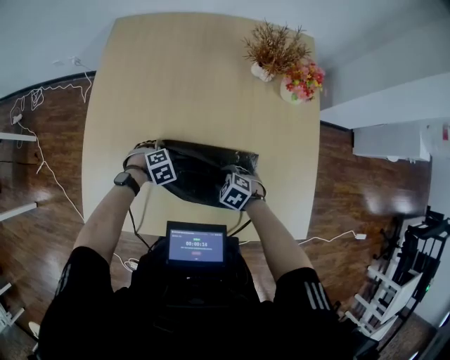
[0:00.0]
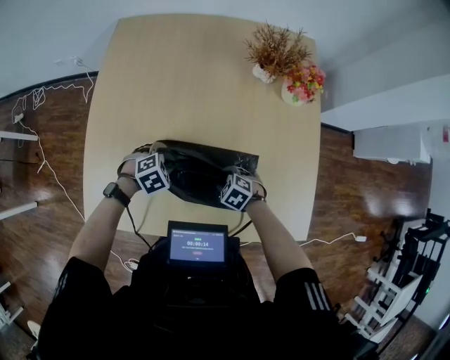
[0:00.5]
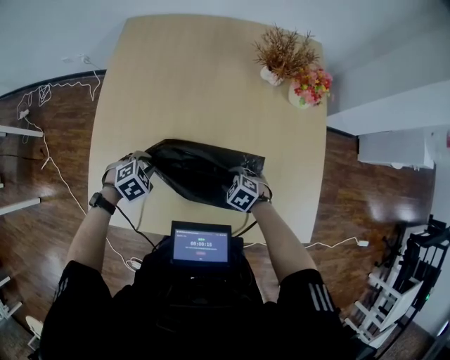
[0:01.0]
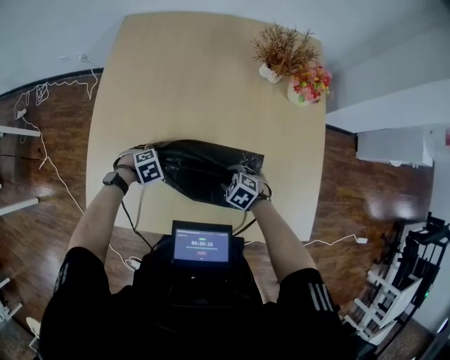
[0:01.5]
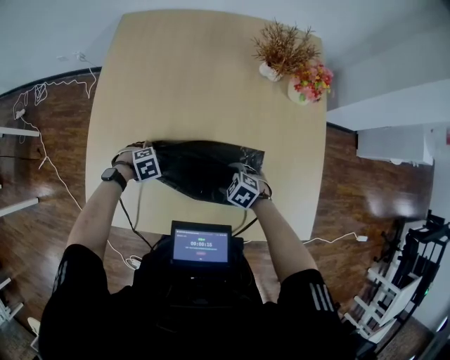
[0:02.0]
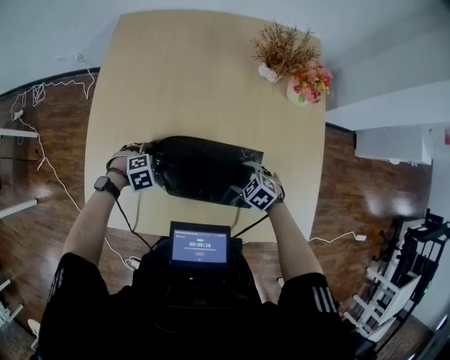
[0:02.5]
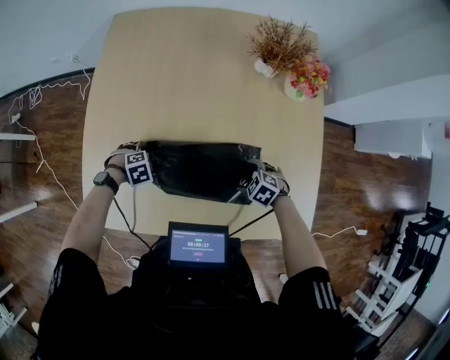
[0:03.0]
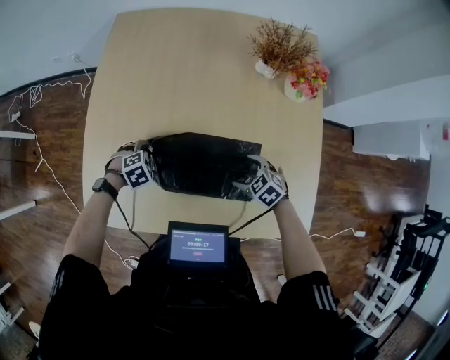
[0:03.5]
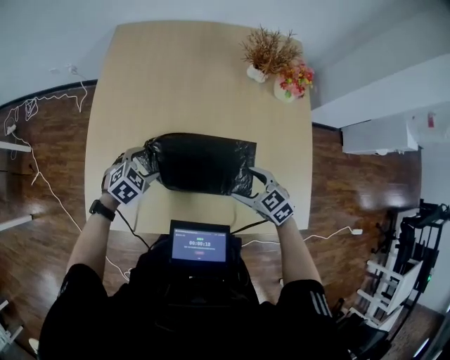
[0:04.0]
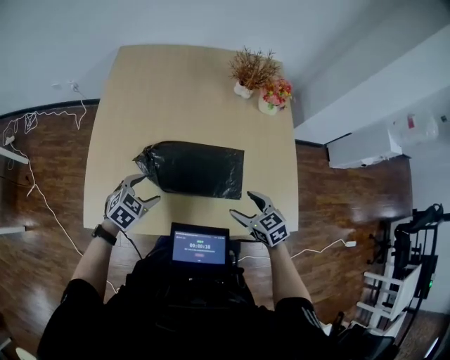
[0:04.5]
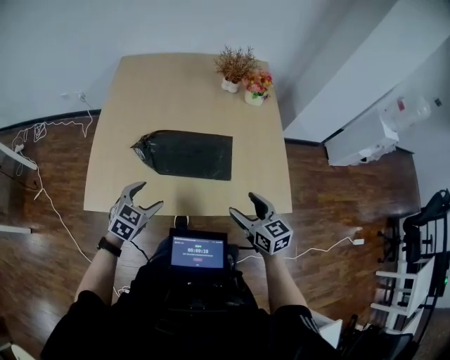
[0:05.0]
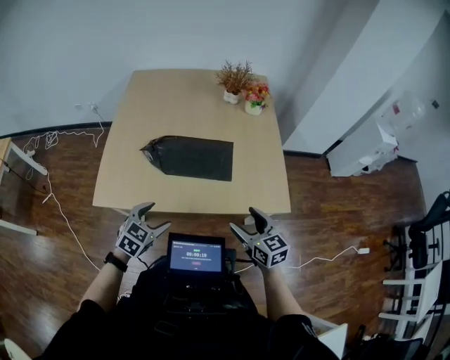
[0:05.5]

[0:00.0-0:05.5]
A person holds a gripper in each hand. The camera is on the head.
0:00.0 to 0:02.0: The left gripper goes upward and returns, roughly 10 cm each way, and closes, then reopens.
0:02.0 to 0:03.5: The right gripper changes place by approximately 10 cm.
0:03.5 to 0:05.5: The right gripper moves about 40 cm, and tilts its fingers about 40 degrees upward. The left gripper shifts by some 40 cm, and tilts its fingers approximately 40 degrees upward.

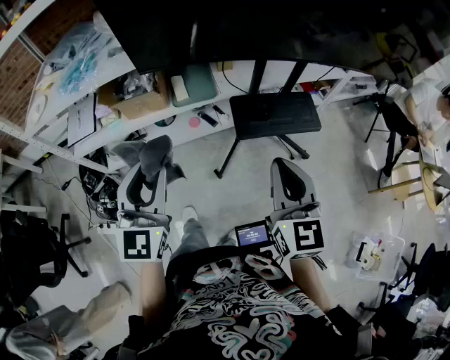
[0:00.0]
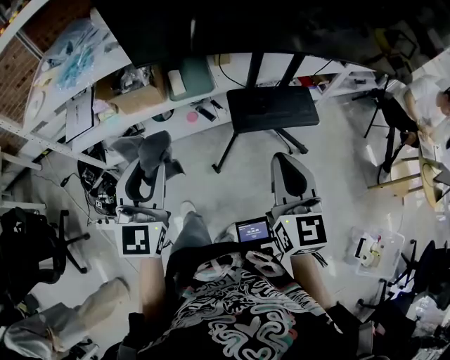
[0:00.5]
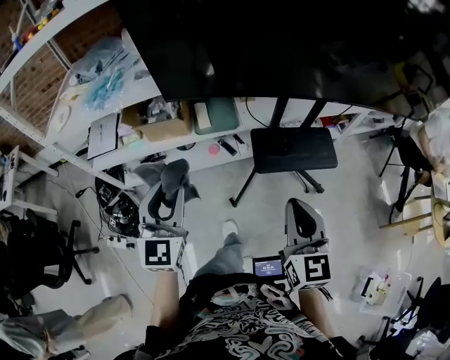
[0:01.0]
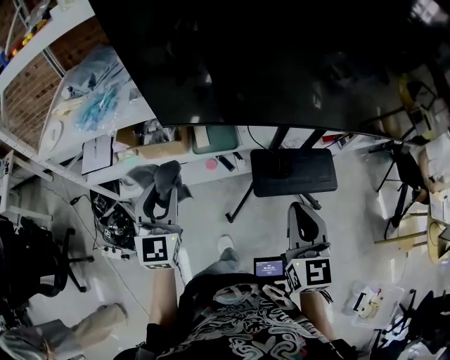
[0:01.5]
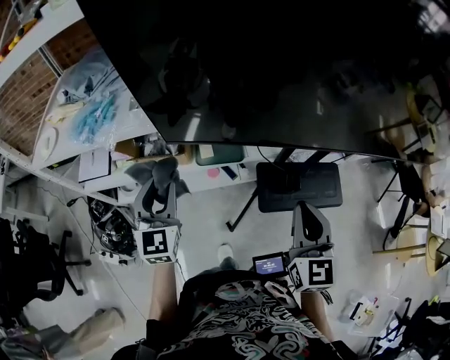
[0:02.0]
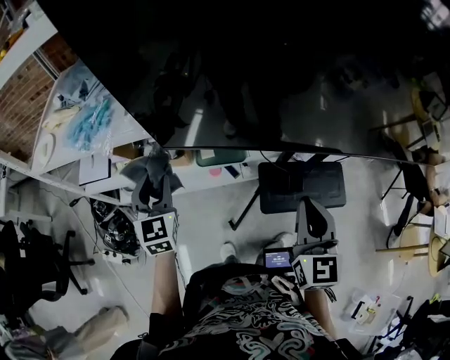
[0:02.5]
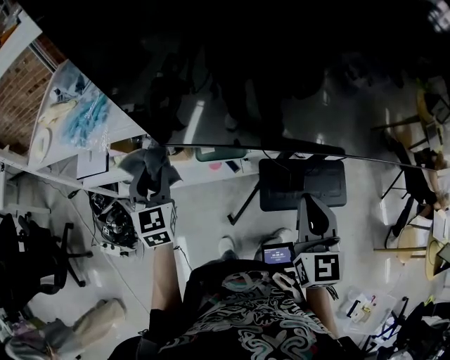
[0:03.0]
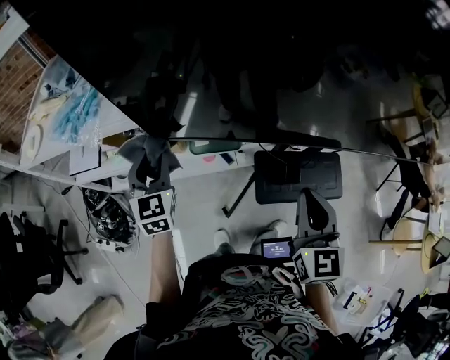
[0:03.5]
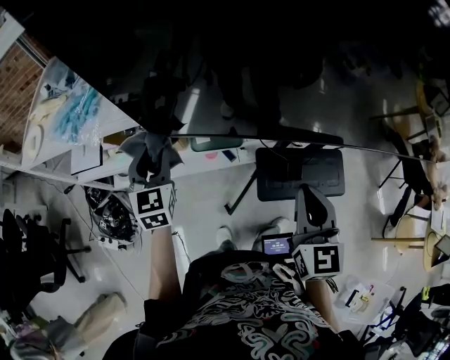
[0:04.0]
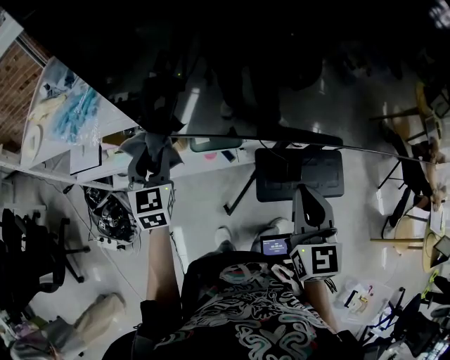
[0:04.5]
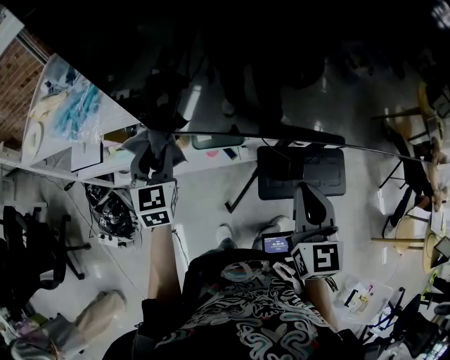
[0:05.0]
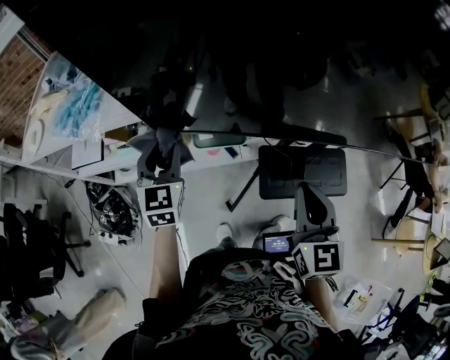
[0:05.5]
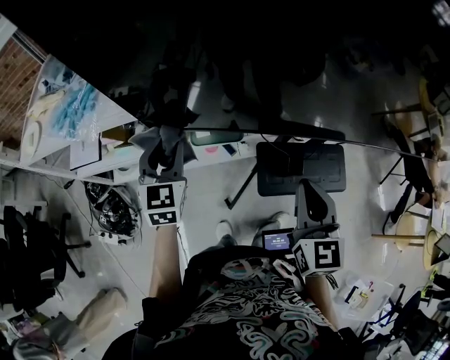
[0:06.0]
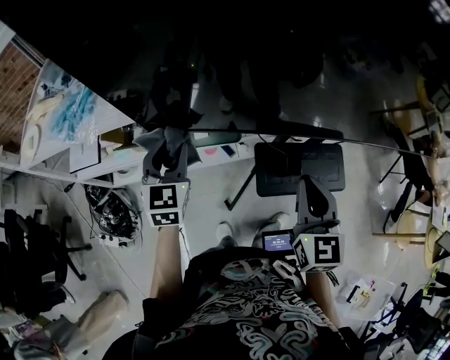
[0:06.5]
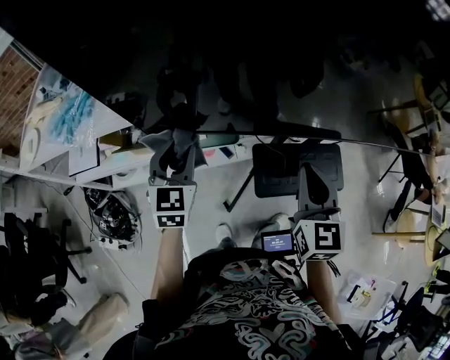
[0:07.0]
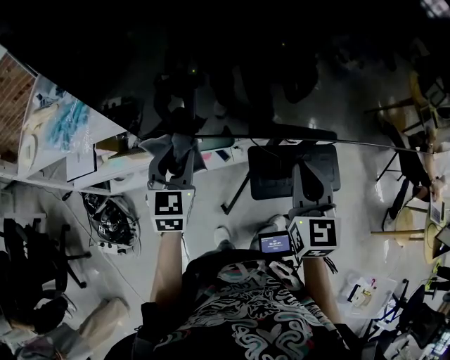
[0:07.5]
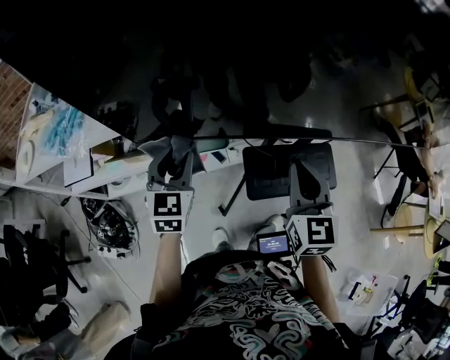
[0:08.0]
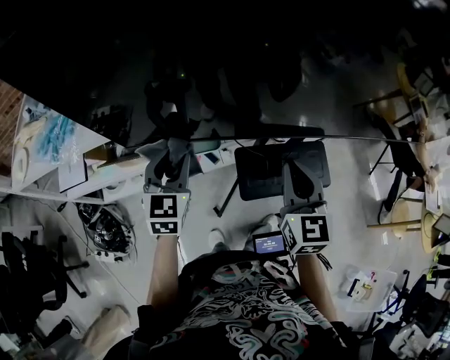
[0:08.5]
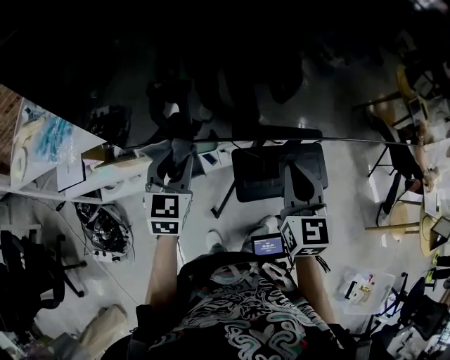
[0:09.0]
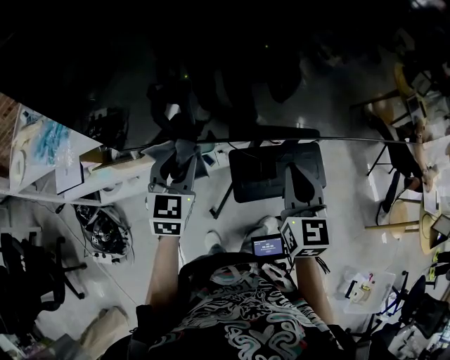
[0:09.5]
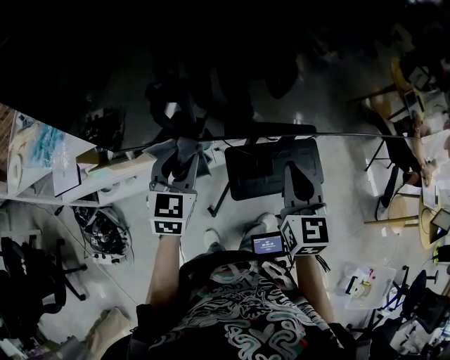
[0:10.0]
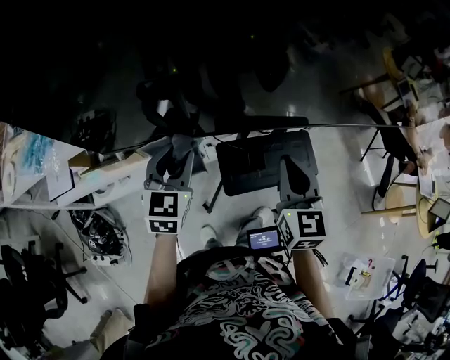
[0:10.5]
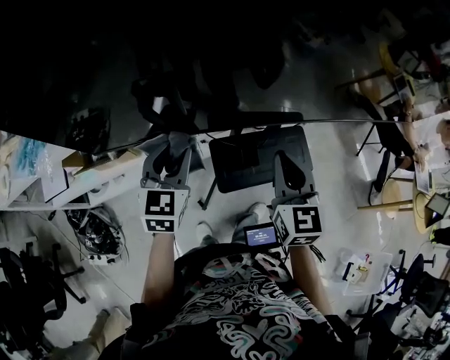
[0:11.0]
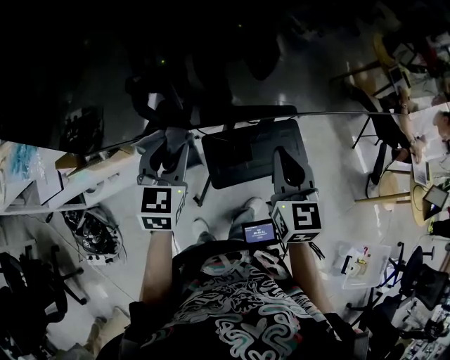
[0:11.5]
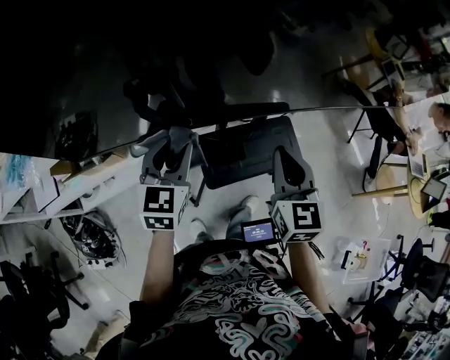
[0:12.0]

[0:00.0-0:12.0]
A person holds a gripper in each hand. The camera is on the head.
0:00.0 to 0:02.0: The two grippers go about 20 cm forward.
0:02.0 to 0:04.0: The left gripper shifts about 10 cm forward. The right gripper travels forward by about 5 cm.
0:04.0 to 0:06.0: The grippers stay close to where they were, moving slightly.
0:06.0 to 0:08.0: The right gripper changes place by some 5 cm. Meanwhile the left gripper shifts about 10 cm to the right.
0:08.0 to 0:10.0: The grippers both shift to the right by approximately 5 cm.
0:10.0 to 0:12.0: Both grippers travel together to the right, about 10 cm.

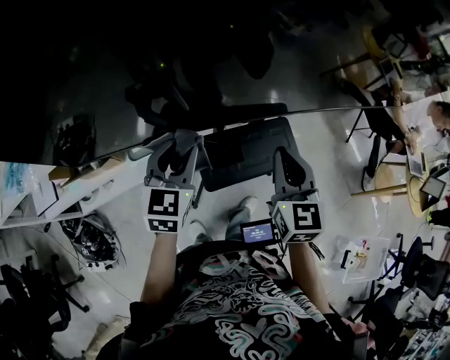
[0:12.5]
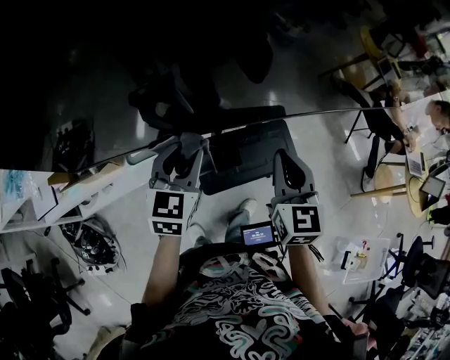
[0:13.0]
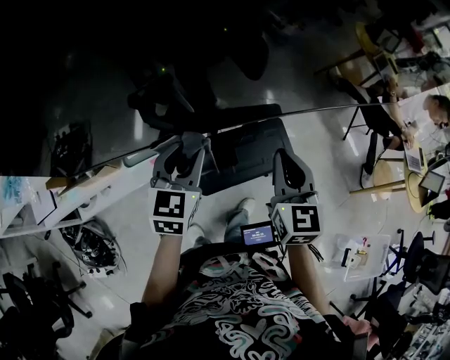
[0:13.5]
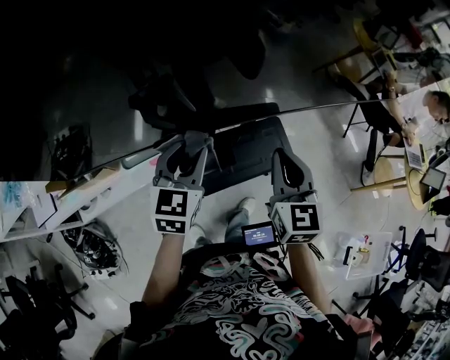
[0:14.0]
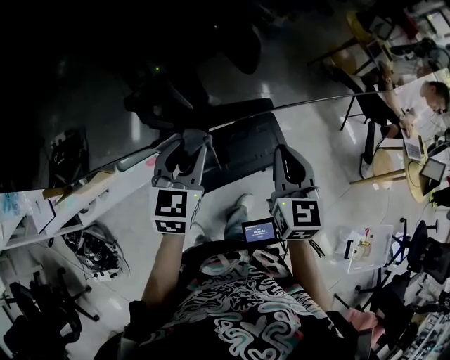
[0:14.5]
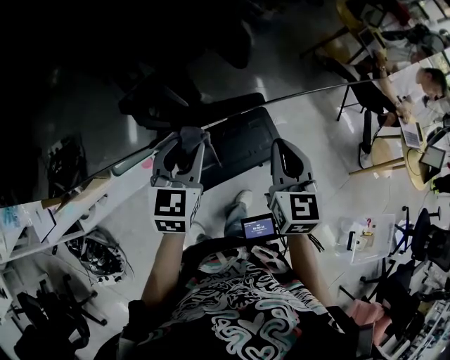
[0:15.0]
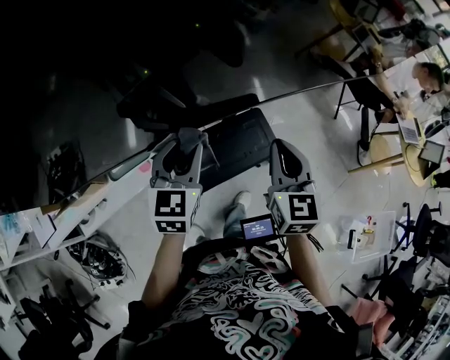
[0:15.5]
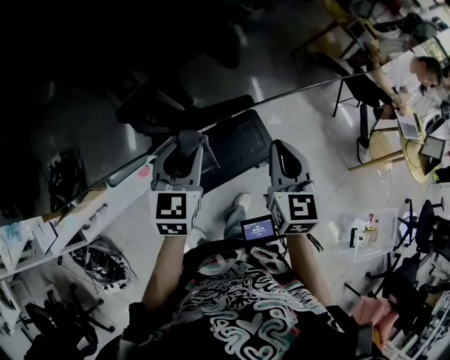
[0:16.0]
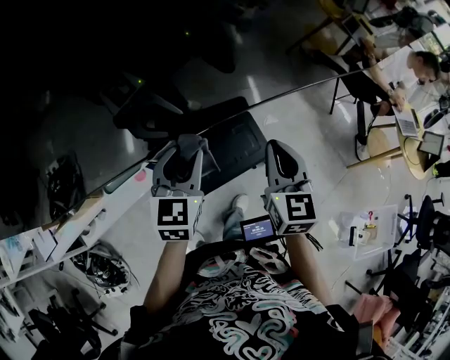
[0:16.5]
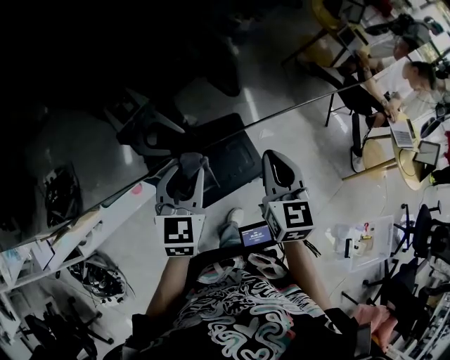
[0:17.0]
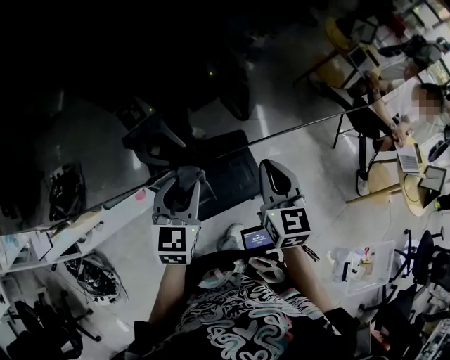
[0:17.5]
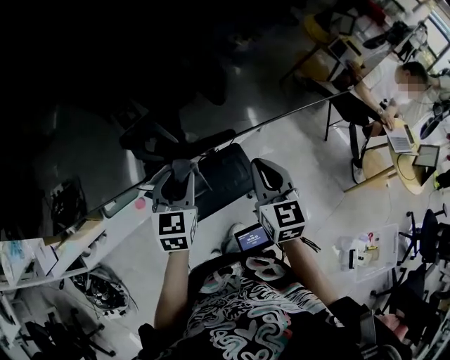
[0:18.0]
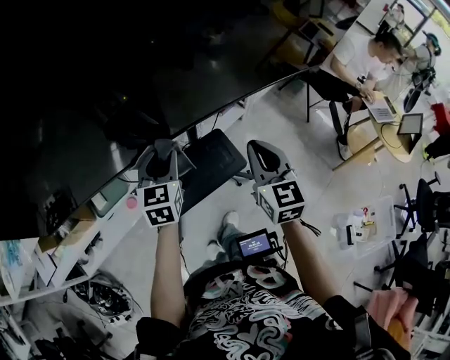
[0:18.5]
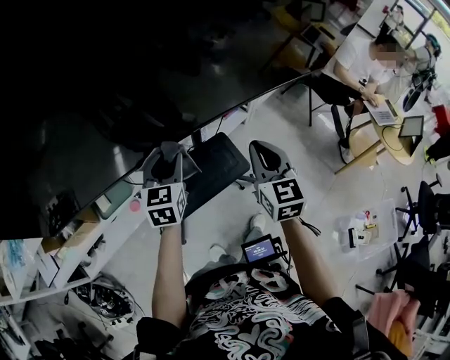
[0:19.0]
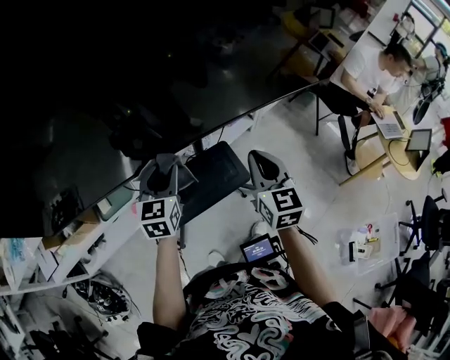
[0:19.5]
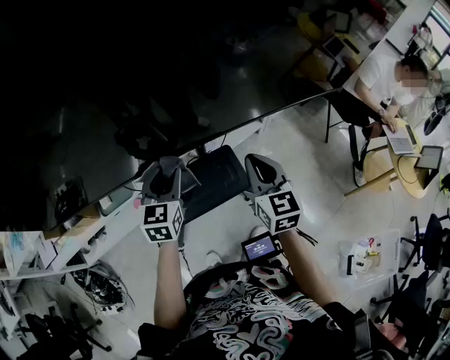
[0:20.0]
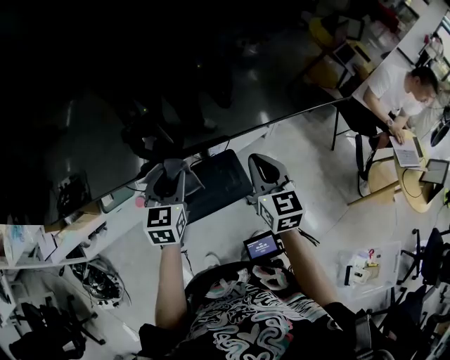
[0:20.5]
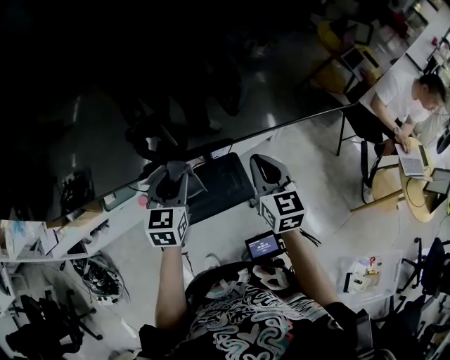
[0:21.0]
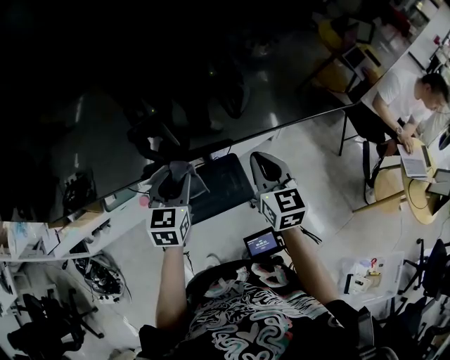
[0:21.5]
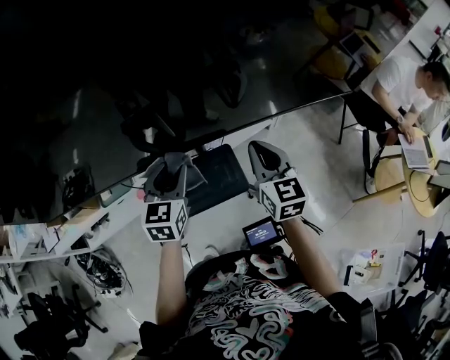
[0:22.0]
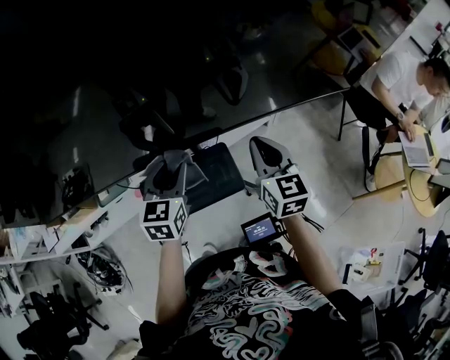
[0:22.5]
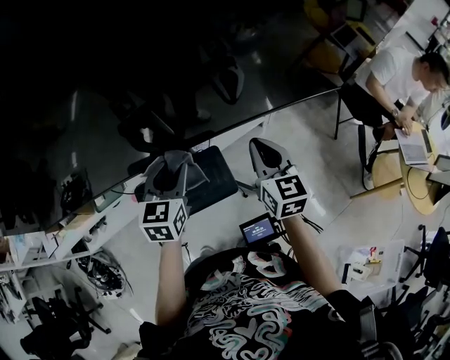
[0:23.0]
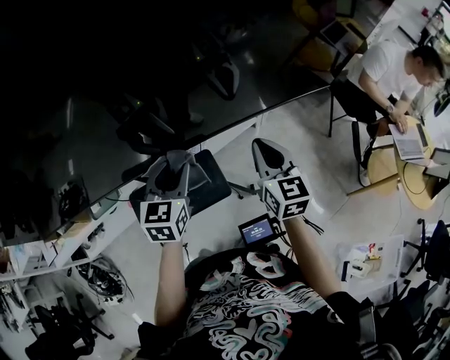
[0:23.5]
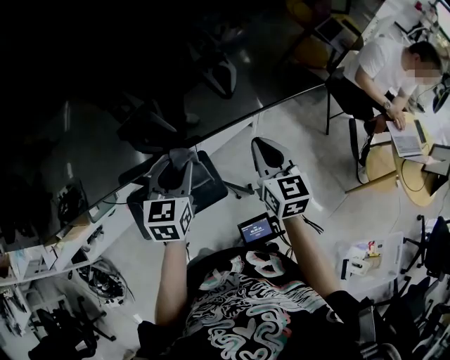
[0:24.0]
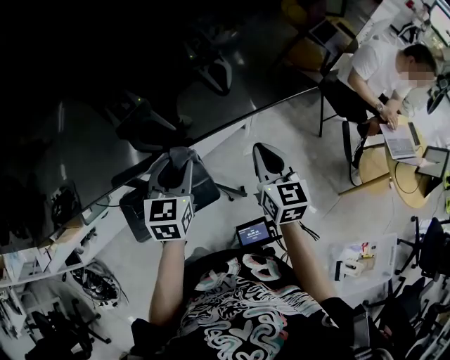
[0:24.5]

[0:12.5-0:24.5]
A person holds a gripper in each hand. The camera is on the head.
0:12.5 to 0:14.5: The two grippers go about 5 cm to the right.
0:14.5 to 0:16.5: The two grippers go about 10 cm to the right.
0:16.5 to 0:18.5: The right gripper heads to the right, covering some 5 cm.
0:18.5 to 0:20.5: The left gripper moves to the right, some 5 cm; the right gripper travels forward and to the right by approximately 10 cm.
0:20.5 to 0:22.5: Both grippers move to the right, some 10 cm.
0:22.5 to 0:24.5: Both grippers move to the right, roughly 10 cm.
